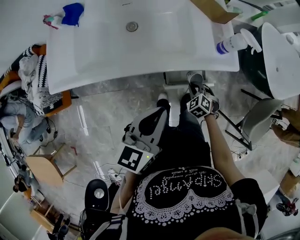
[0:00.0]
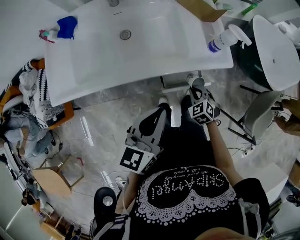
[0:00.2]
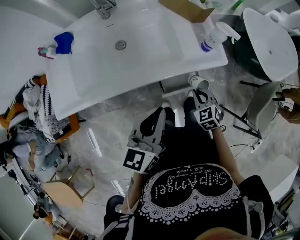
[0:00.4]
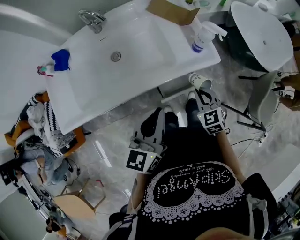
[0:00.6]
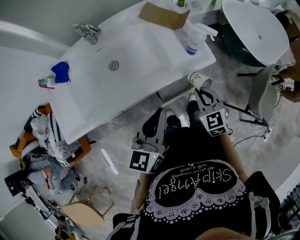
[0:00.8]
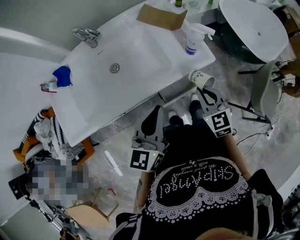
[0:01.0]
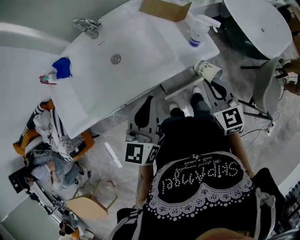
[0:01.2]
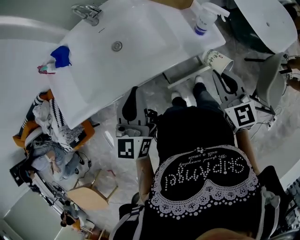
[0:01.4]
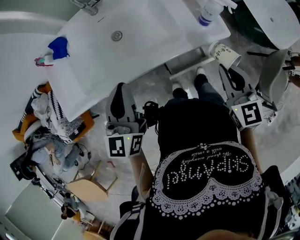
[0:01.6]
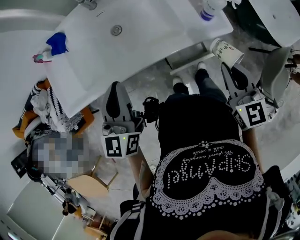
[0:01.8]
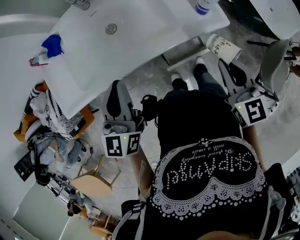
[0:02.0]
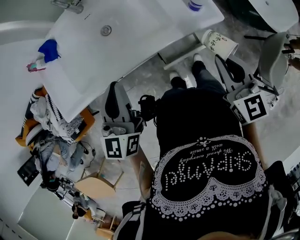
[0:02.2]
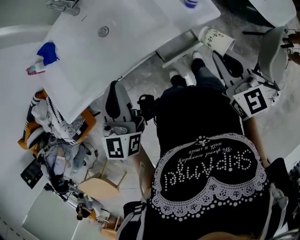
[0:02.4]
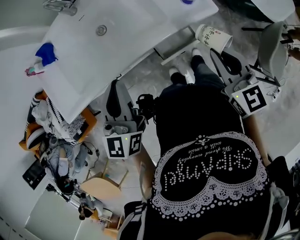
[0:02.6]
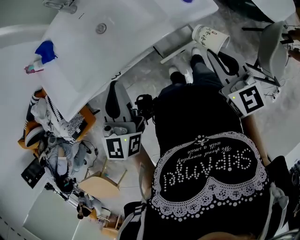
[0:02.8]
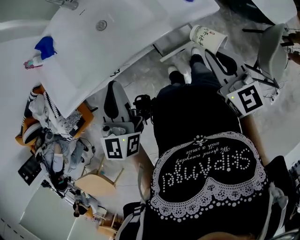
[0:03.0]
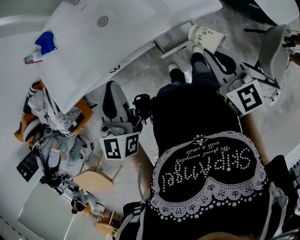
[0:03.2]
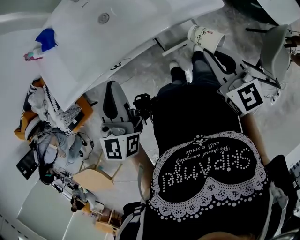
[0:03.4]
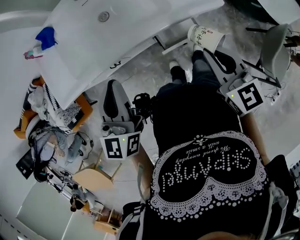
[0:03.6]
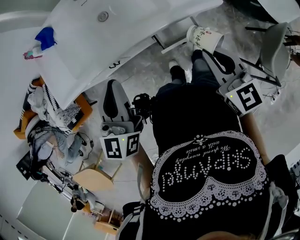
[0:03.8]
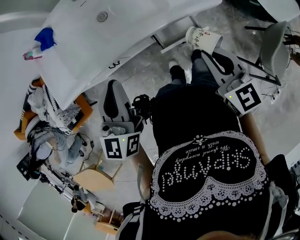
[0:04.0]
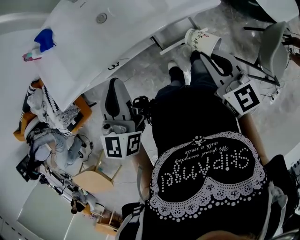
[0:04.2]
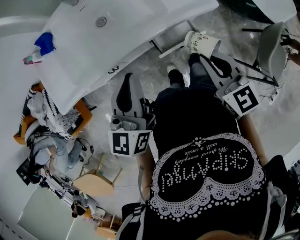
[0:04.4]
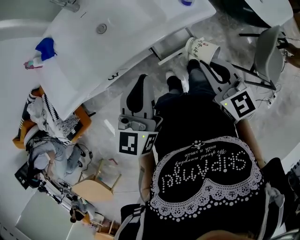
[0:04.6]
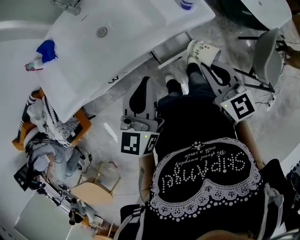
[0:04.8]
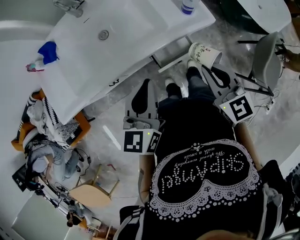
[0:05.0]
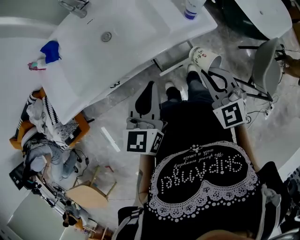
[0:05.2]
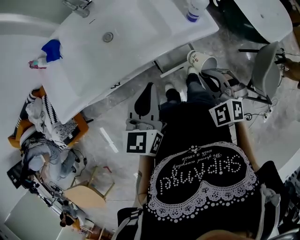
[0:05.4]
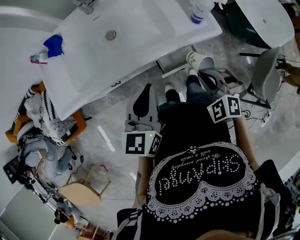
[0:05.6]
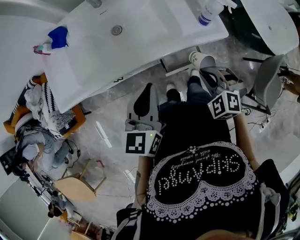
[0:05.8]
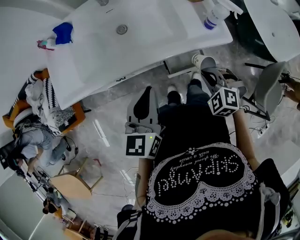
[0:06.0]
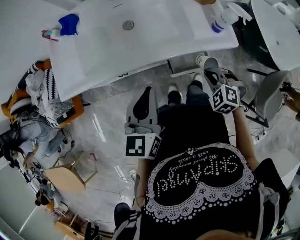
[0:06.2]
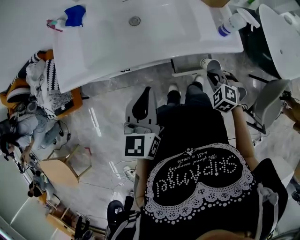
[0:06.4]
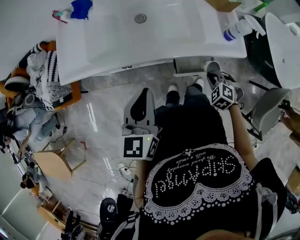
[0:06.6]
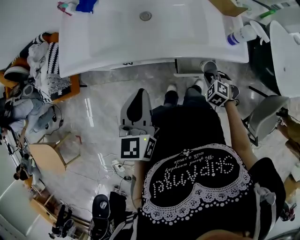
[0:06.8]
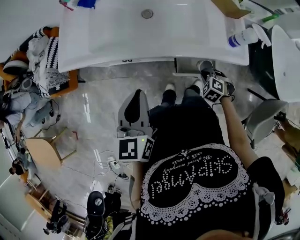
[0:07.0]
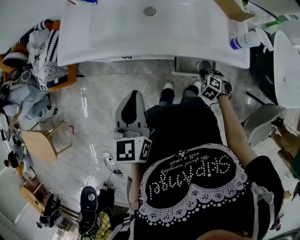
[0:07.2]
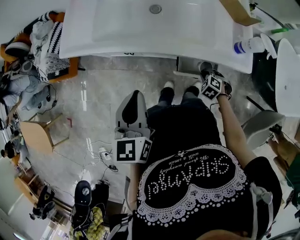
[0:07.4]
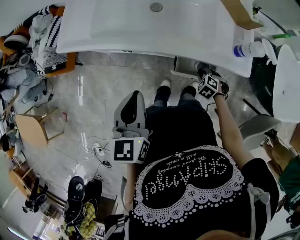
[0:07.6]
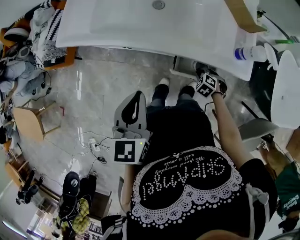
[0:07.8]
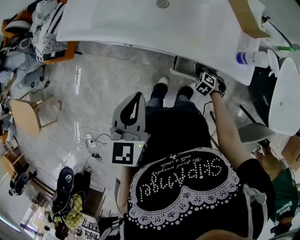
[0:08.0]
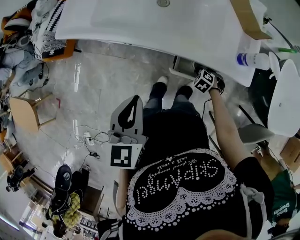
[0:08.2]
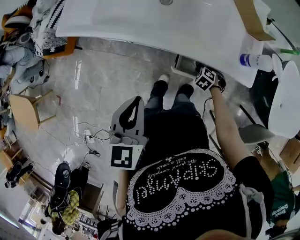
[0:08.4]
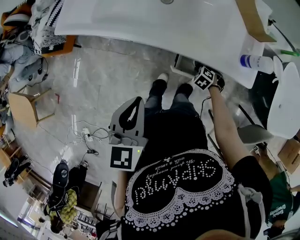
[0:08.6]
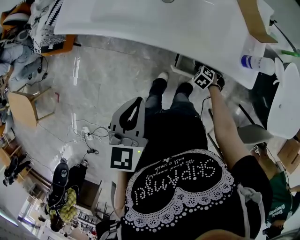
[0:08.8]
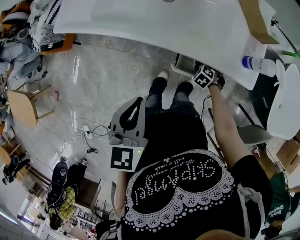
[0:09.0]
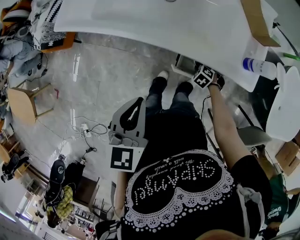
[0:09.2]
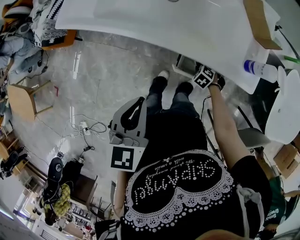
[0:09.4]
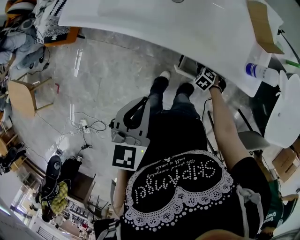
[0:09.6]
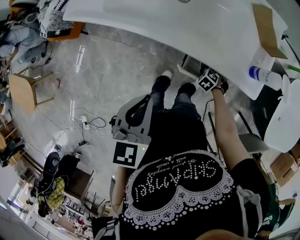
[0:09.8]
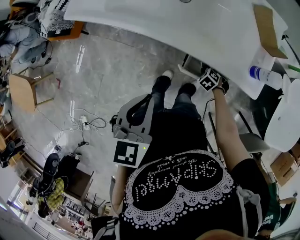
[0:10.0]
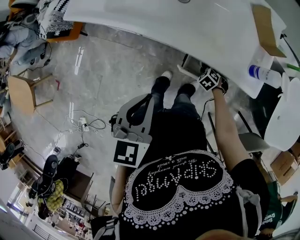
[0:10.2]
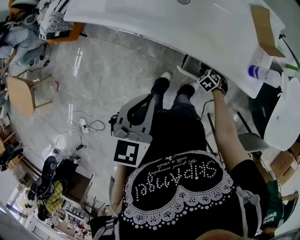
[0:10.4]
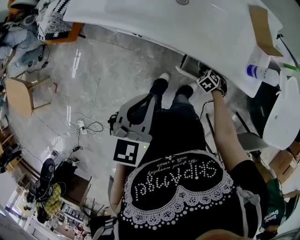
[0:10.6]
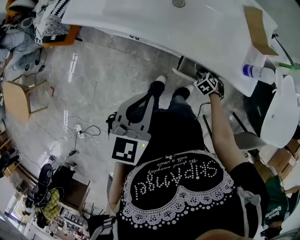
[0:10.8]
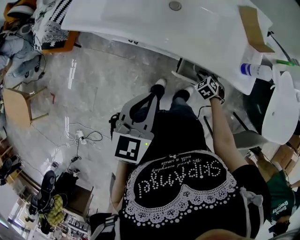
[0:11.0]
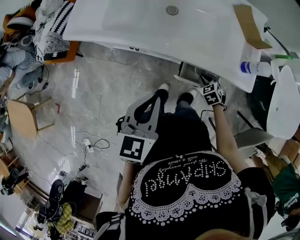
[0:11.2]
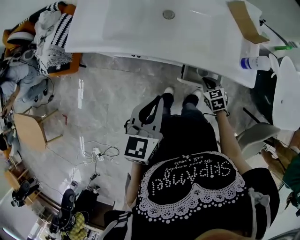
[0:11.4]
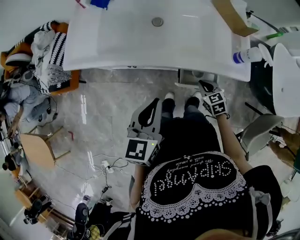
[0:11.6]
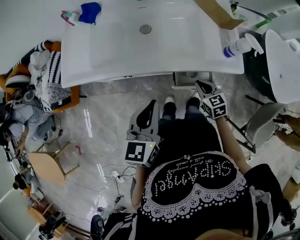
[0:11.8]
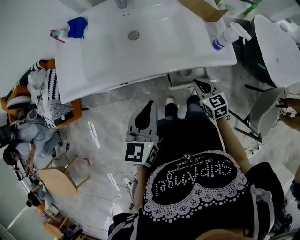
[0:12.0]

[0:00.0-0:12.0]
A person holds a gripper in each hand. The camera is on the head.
0:00.0 to 0:01.6: The left gripper shifts about 15 cm to the left and forward. Meanwhile the right gripper goes roughly 30 cm upward, and tilts its fingers approximately 40 degrees upward.
0:01.6 to 0:03.0: The right gripper changes place by approximately 5 cm.
0:03.0 to 0:04.4: The left gripper is displaced to the right by approximately 5 cm.
0:04.4 to 0:06.0: The right gripper moves downward, approximately 10 cm, and rotates around the line of its fingers by some 50 degrees, counterclockwise from behind.
0:06.0 to 0:07.6: The left gripper ends up approximately 5 cm from where it was, and turns by roughly 30 degrees. The right gripper goes about 20 cm downward, and turns by about 20 degrees.
0:07.6 to 0:09.0: The right gripper goes some 5 cm downward.
0:09.0 to 0:10.4: There are only small adjustments of the grippers.
0:10.4 to 0:12.0: The right gripper moves upward, roughly 25 cm, and angles its fingers upward, by about 40 degrees, while the left gripper changes place by about 5 cm, and rotates roughly 20 degrees.

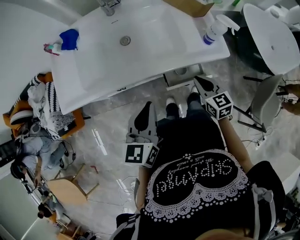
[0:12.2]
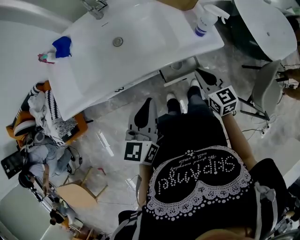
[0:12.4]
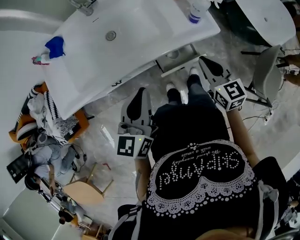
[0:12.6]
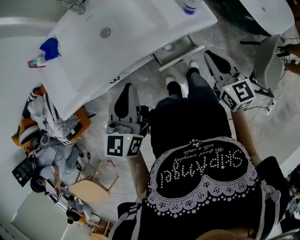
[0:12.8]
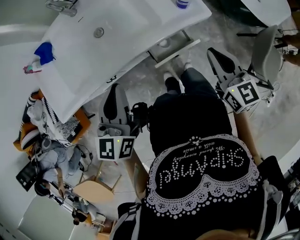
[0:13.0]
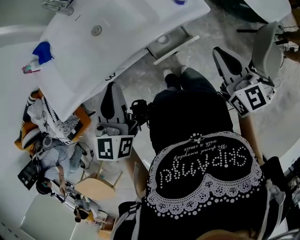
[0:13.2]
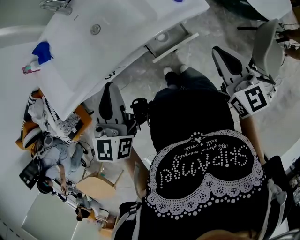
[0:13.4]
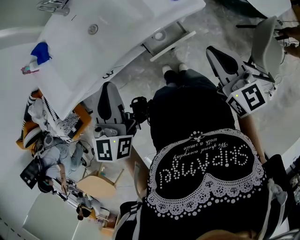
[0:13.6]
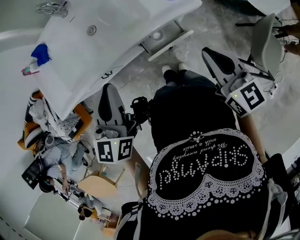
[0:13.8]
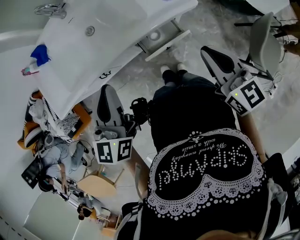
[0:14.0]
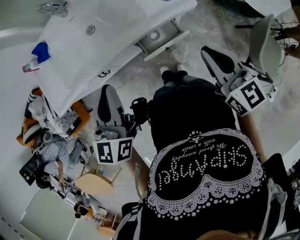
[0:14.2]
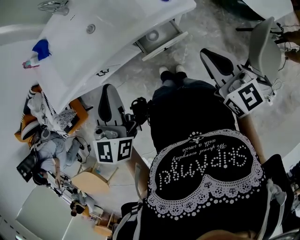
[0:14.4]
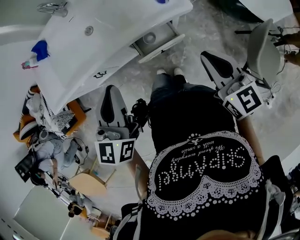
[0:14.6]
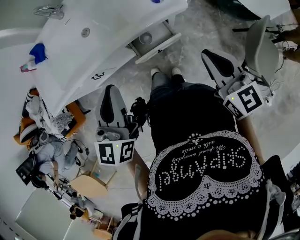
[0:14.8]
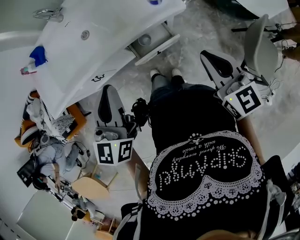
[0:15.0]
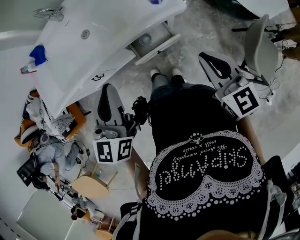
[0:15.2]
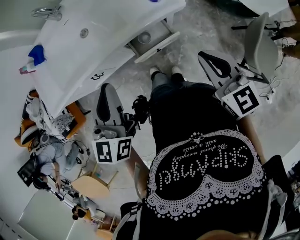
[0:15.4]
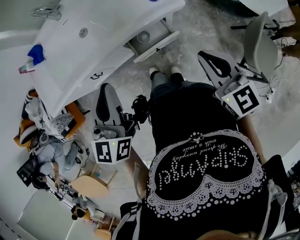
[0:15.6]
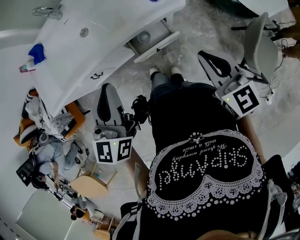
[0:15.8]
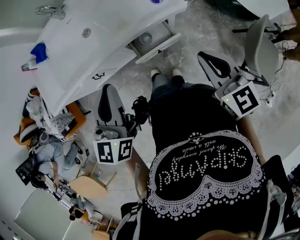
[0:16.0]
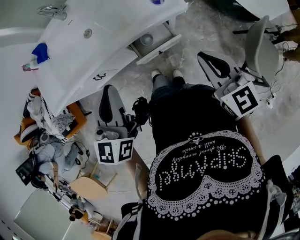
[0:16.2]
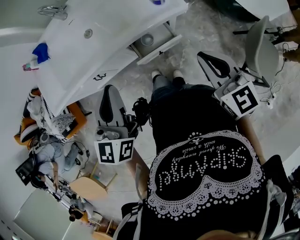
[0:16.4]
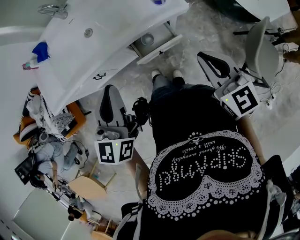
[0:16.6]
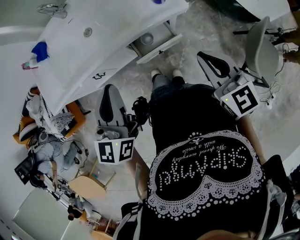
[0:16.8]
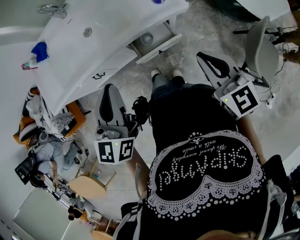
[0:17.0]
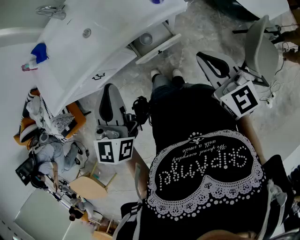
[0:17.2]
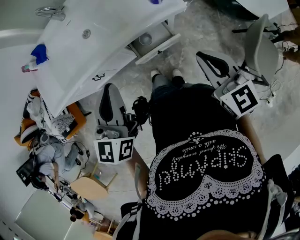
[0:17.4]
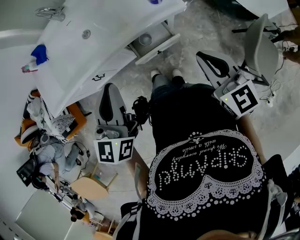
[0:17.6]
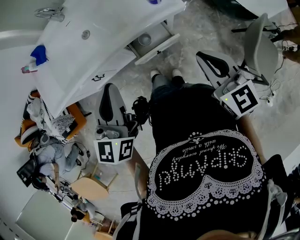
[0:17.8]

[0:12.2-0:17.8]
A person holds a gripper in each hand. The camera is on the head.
0:12.2 to 0:13.6: The left gripper heads upward, covering roughly 5 cm; the right gripper shifts roughly 20 cm upward, to the right and backward.
0:13.6 to 0:15.0: The two grippers go some 5 cm to the right.
0:15.0 to 0:16.4: The grippers make only small movements.
0:16.4 to 0:17.8: Both grippers stay put.

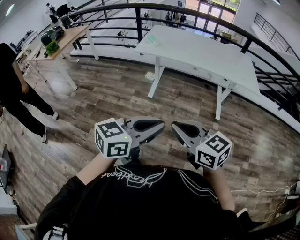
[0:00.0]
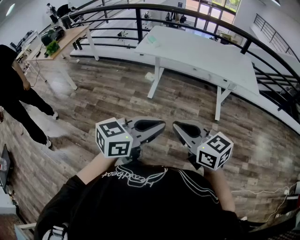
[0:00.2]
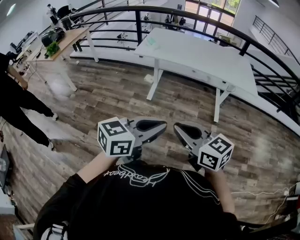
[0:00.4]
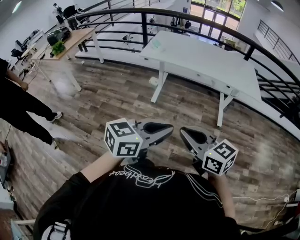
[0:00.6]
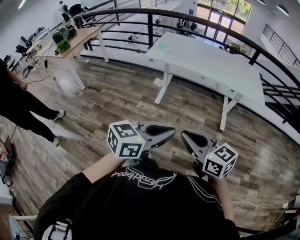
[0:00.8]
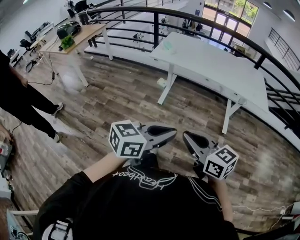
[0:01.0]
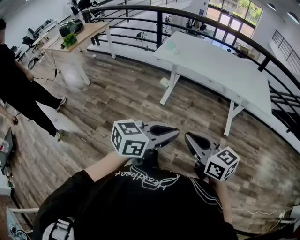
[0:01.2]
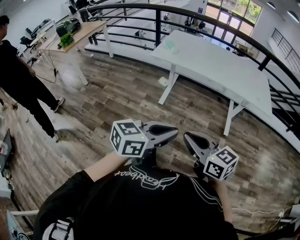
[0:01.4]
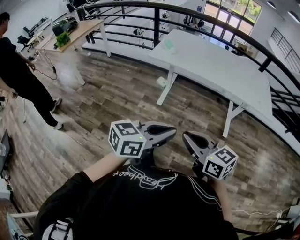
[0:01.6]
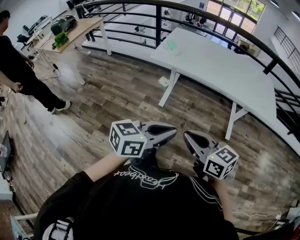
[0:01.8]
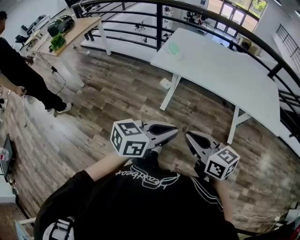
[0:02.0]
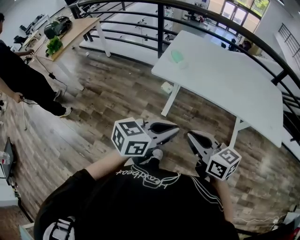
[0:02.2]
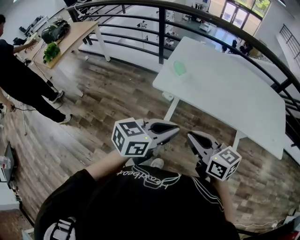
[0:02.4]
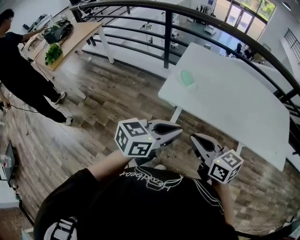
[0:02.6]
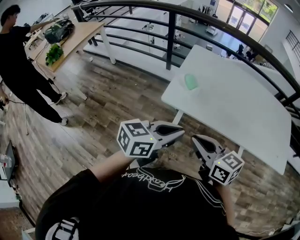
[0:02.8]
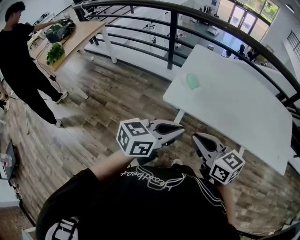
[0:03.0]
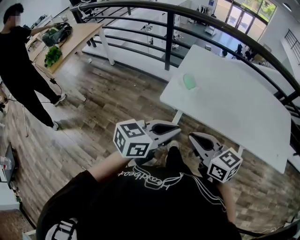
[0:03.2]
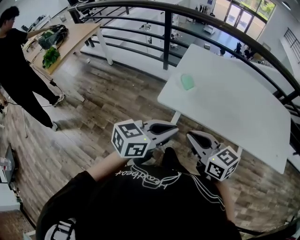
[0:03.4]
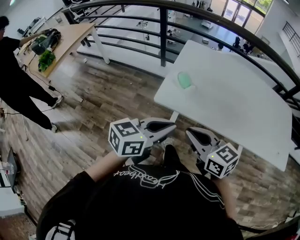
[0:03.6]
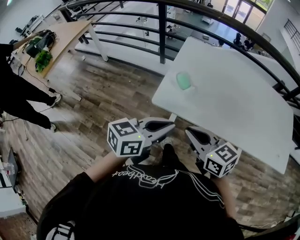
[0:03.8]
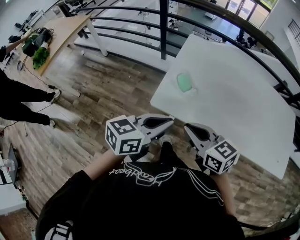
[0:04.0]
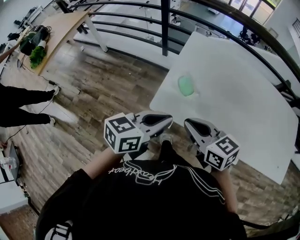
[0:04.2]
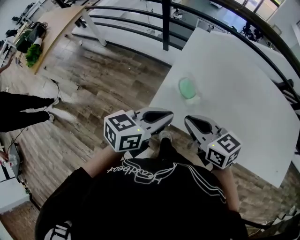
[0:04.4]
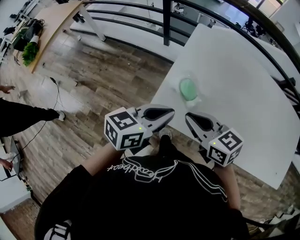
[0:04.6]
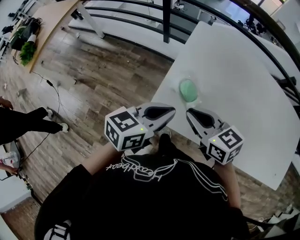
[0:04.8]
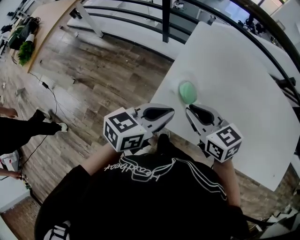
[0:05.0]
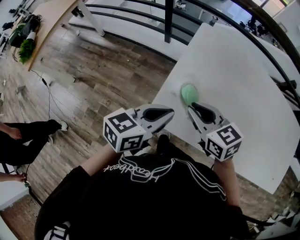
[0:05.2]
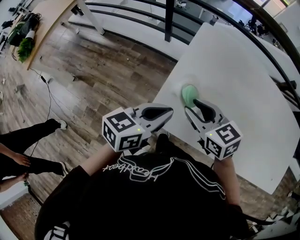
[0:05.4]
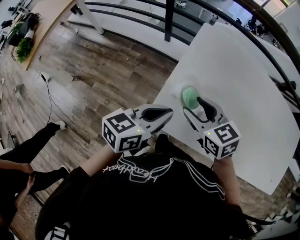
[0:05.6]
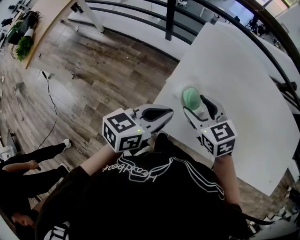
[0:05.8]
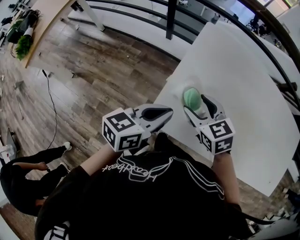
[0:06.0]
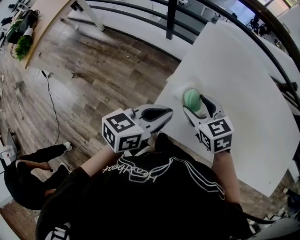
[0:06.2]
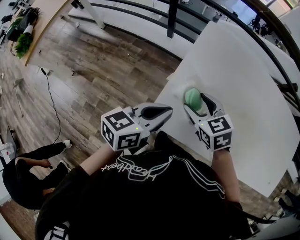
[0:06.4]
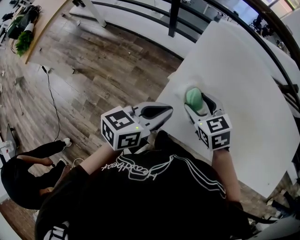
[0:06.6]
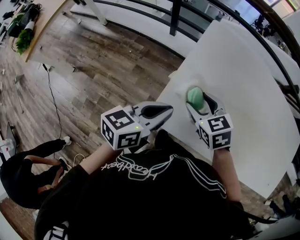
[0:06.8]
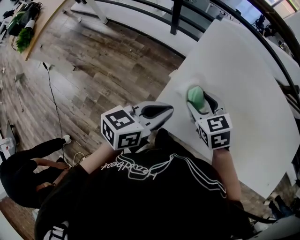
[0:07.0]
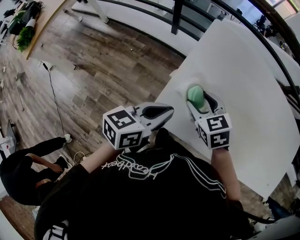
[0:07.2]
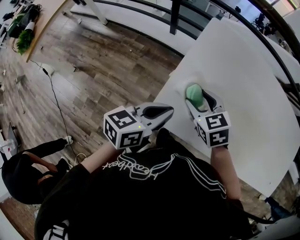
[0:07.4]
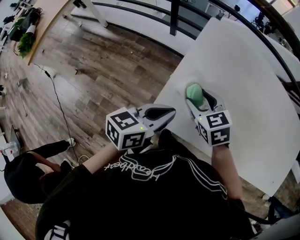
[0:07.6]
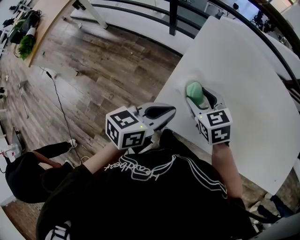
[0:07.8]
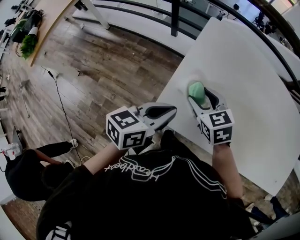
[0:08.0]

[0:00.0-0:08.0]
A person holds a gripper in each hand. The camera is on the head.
0:00.0 to 0:01.6: The two grippers go approximately 10 cm forward.
0:01.6 to 0:03.2: Both grippers are carried forward, roughly 50 cm.
0:03.2 to 0:04.8: Both grippers move forward, roughly 25 cm.
0:04.8 to 0:06.4: The left gripper shifts by roughly 5 cm. The right gripper moves forward and downward, roughly 10 cm, swivels roughly 20 degrees, and opens.
0:06.4 to 0:08.0: There are only small adjustments of the grippers.
